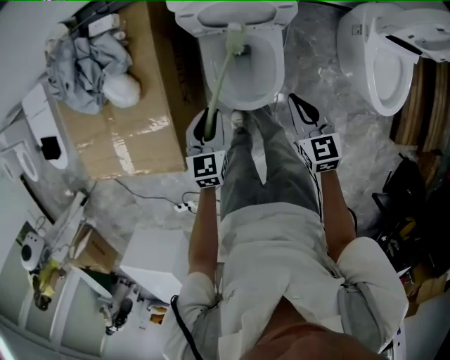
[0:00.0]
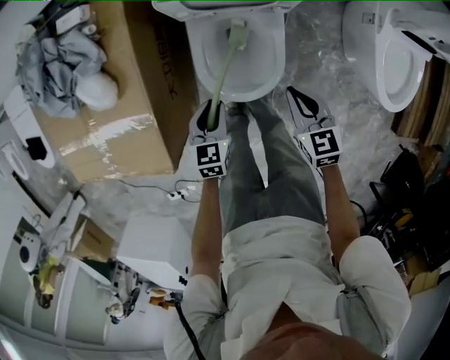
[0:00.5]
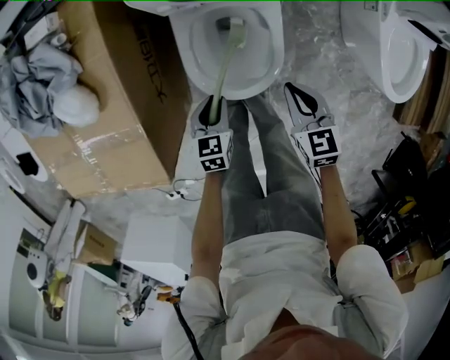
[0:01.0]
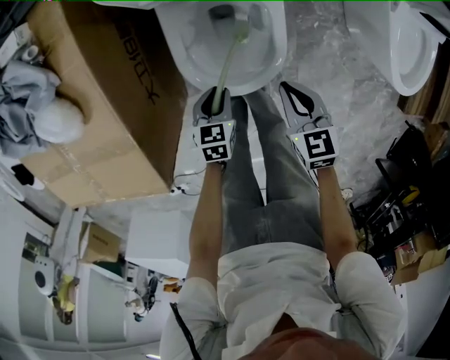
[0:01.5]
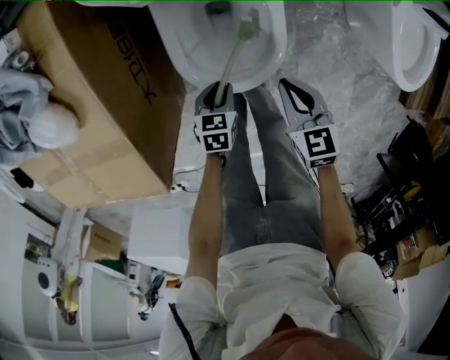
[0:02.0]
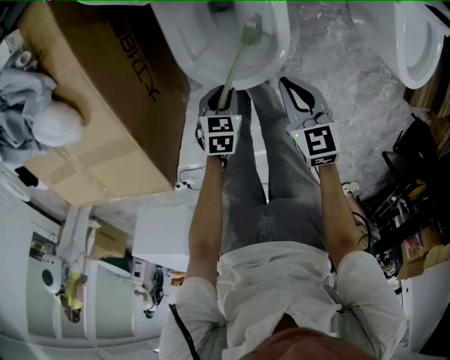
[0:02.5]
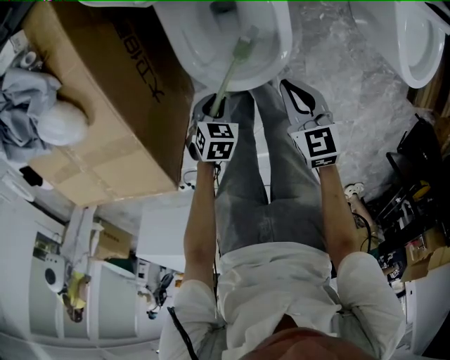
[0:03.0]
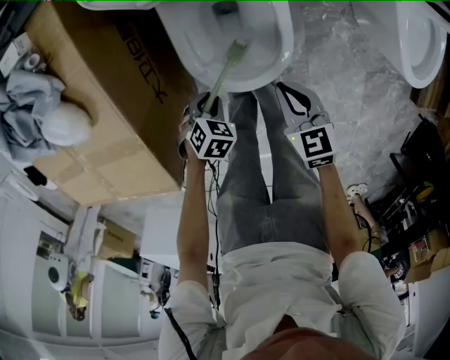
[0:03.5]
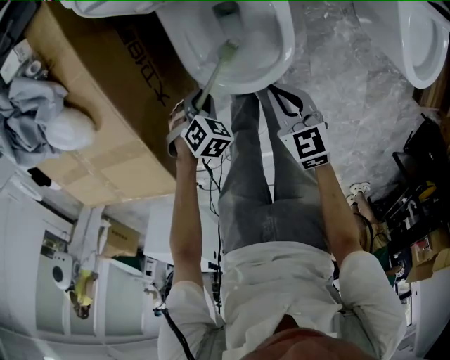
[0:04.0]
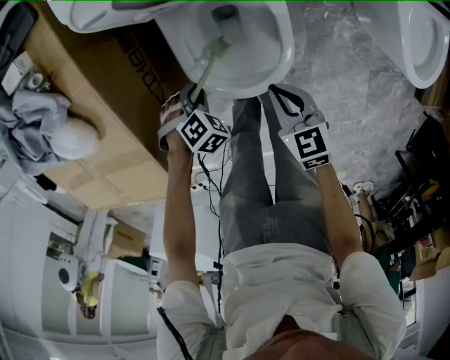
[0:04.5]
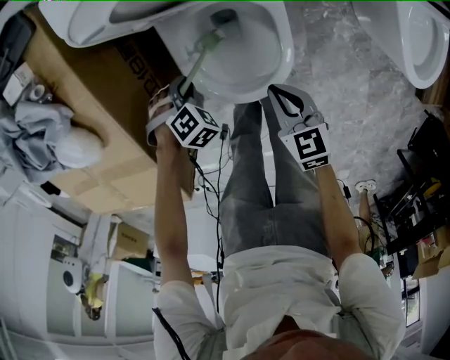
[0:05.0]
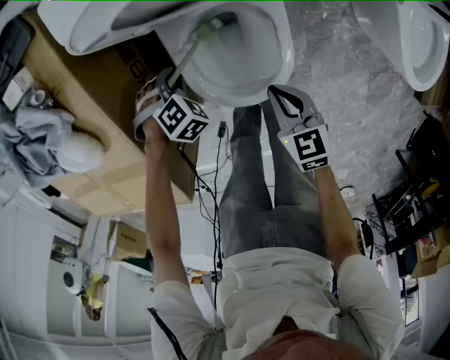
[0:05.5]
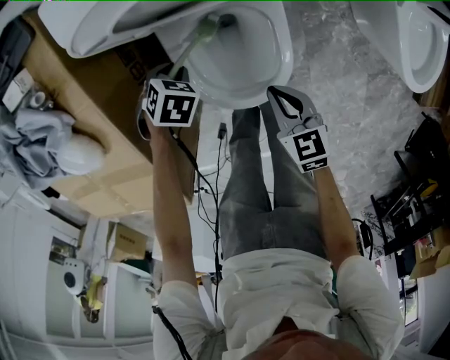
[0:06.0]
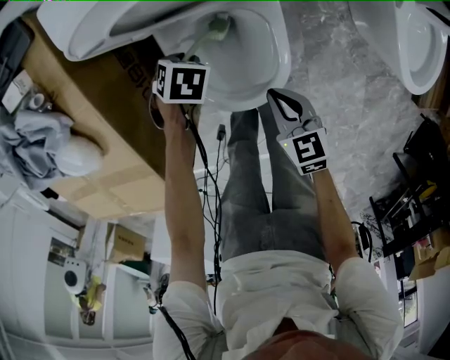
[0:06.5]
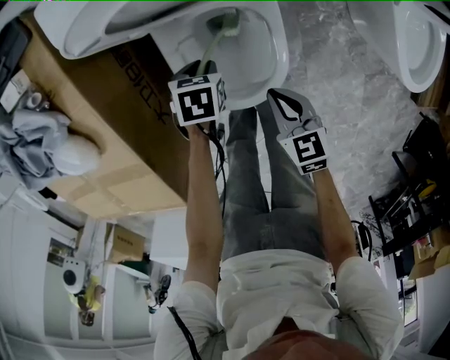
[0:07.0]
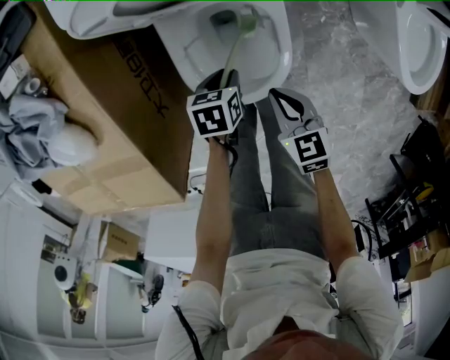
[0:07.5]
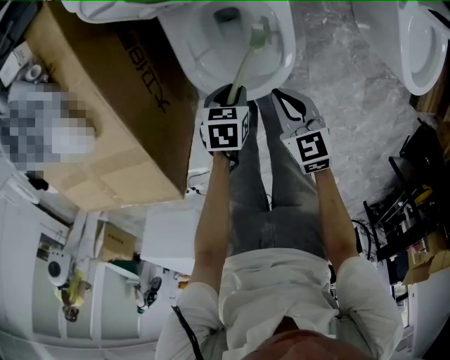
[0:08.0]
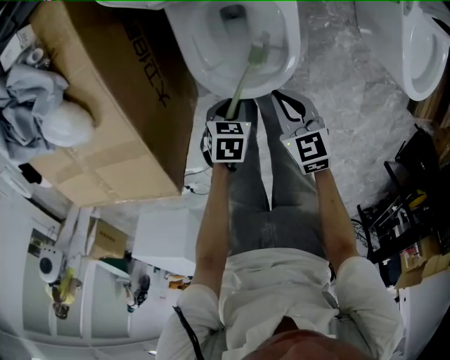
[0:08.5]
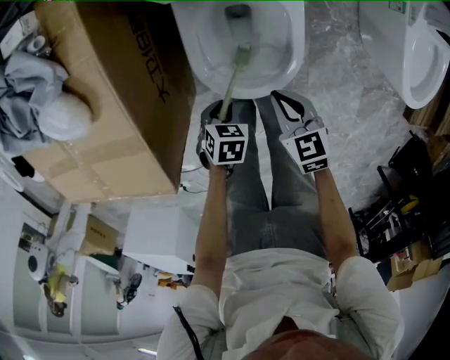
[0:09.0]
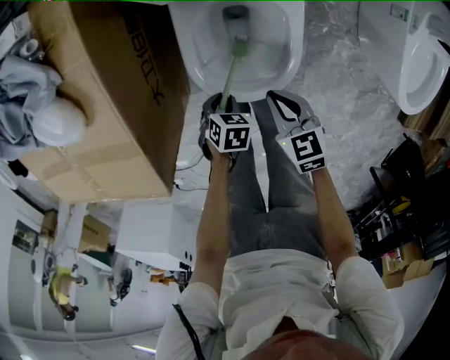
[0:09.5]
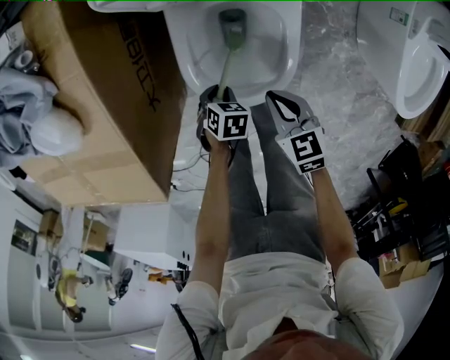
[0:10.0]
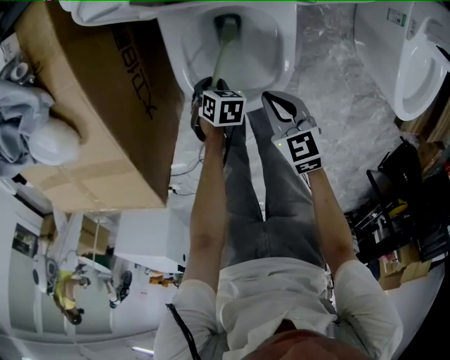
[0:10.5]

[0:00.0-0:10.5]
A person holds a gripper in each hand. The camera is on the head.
0:00.0 to 0:02.0: Both grippers travel together downward, roughly 25 cm. The left gripper changes its angle by roughly 30 degrees.
0:02.0 to 0:04.0: The left gripper shifts by about 5 cm, and twists some 40 degrees clockwise, seen from behind.
0:04.0 to 0:06.5: The left gripper moves some 20 cm, and turns by about 20 degrees; the right gripper shifts by roughly 5 cm.
0:06.5 to 0:08.5: The right gripper moves about 5 cm. The left gripper ends up some 20 cm from where it was, and rotates about 20 degrees.
0:08.5 to 0:10.5: The left gripper travels downward by about 10 cm; the right gripper changes place by approximately 5 cm.

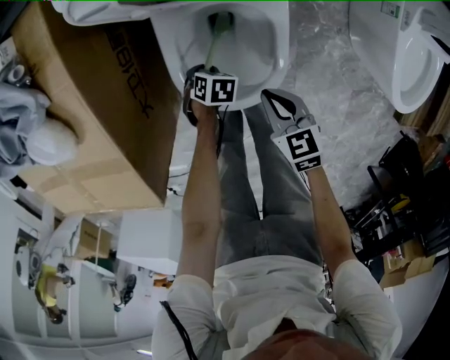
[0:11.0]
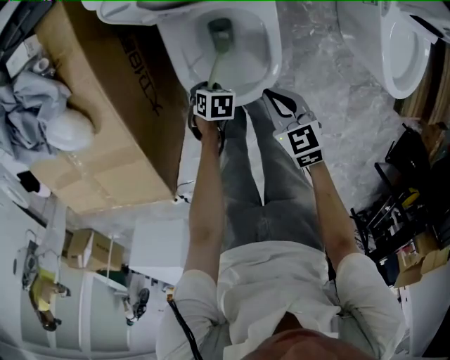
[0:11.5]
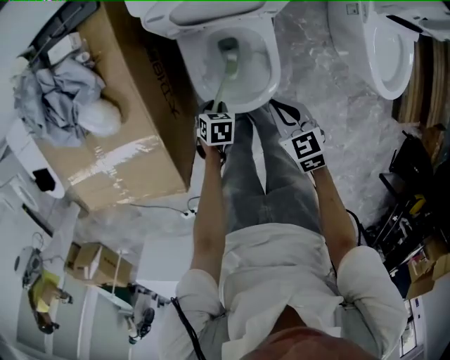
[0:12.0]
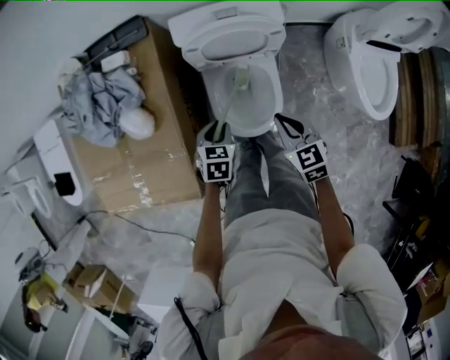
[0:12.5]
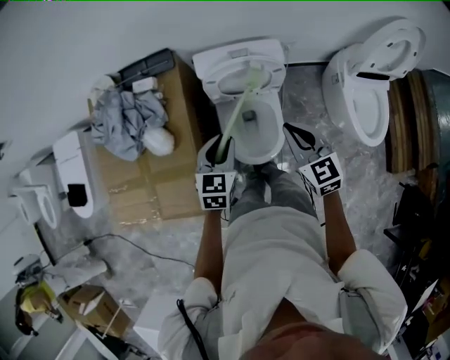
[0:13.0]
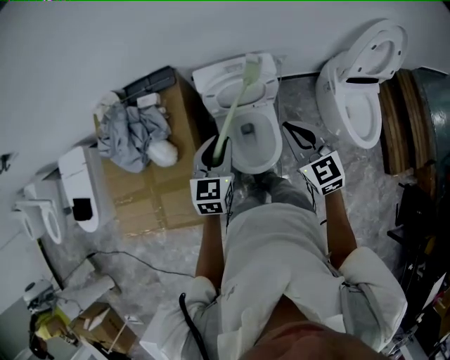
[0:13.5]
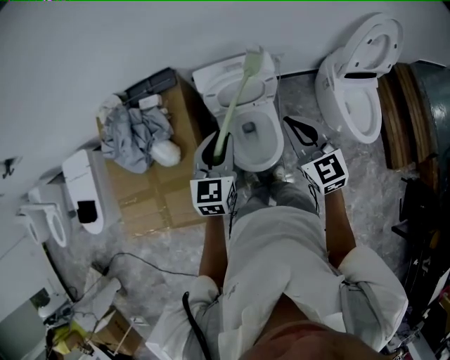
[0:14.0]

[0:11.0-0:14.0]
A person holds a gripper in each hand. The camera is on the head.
0:11.0 to 0:12.5: Both grippers move upward, some 30 cm. The left gripper turns by some 30 degrees.
0:12.5 to 0:14.0: The grippers both shift upward by approximately 25 cm. The right gripper rotates roughly 20 degrees. The left gripper angles its fingers upward, by approximately 40 degrees.

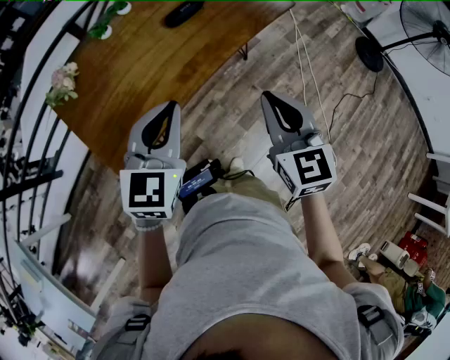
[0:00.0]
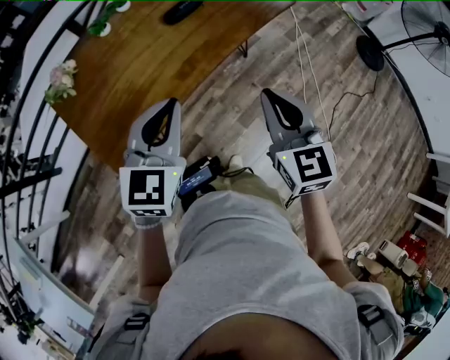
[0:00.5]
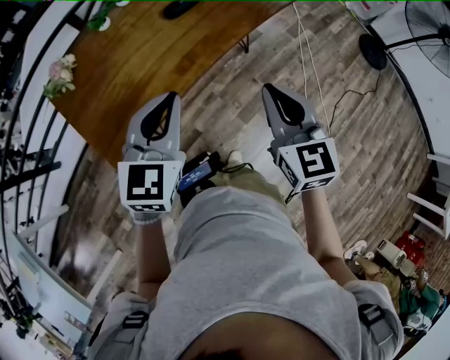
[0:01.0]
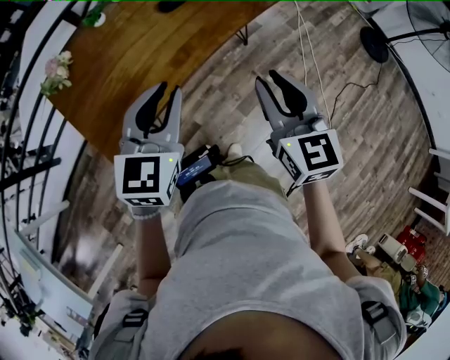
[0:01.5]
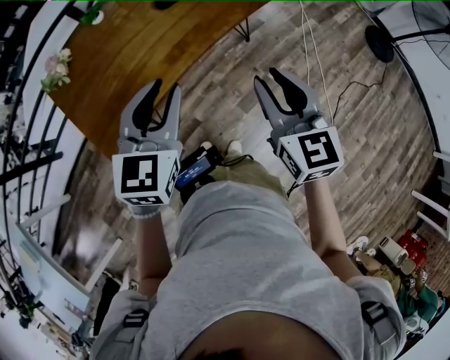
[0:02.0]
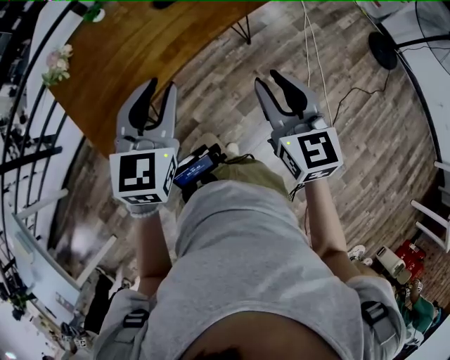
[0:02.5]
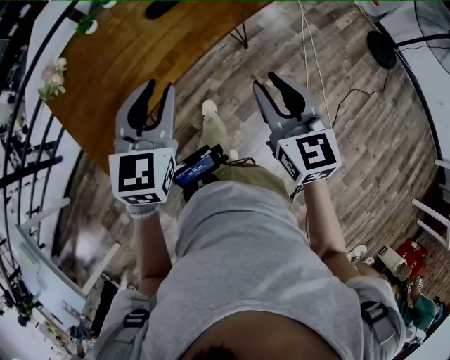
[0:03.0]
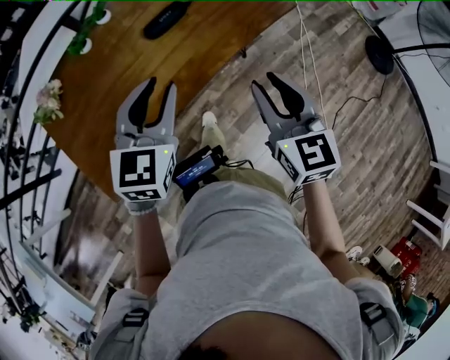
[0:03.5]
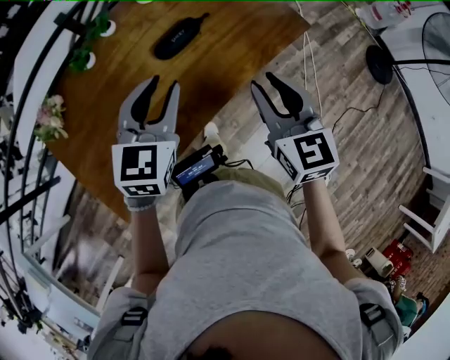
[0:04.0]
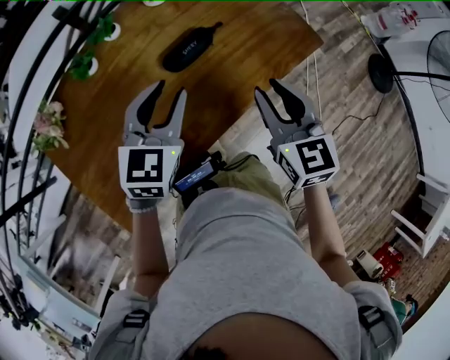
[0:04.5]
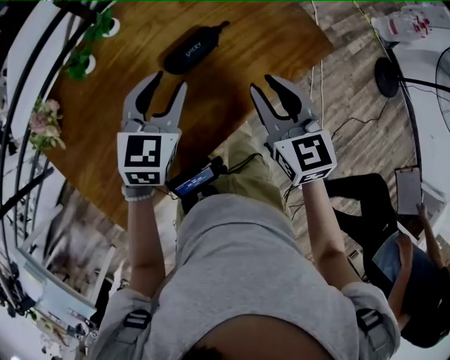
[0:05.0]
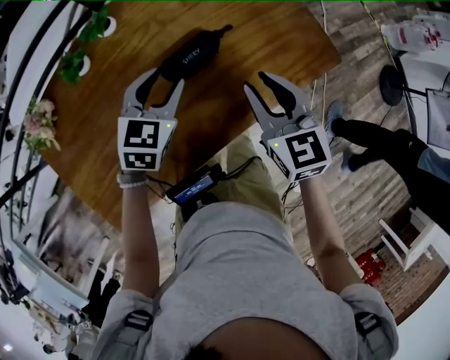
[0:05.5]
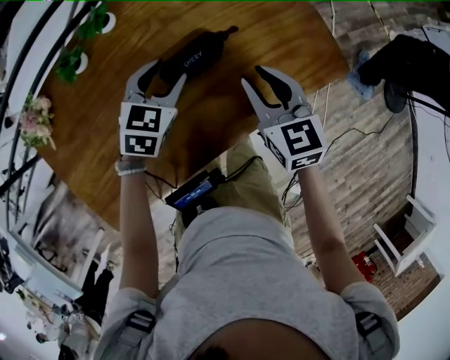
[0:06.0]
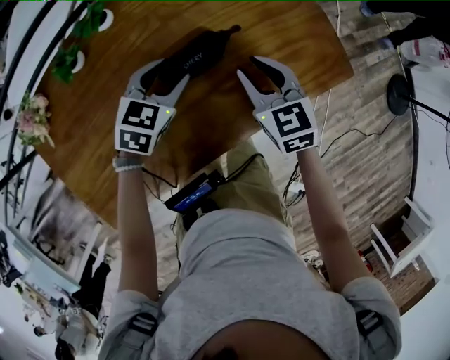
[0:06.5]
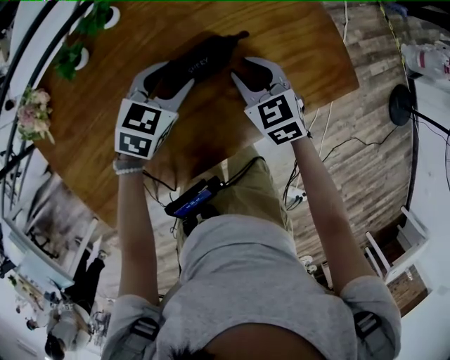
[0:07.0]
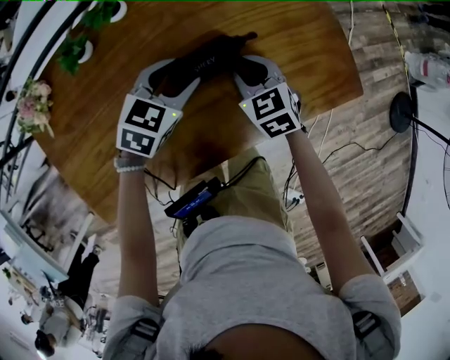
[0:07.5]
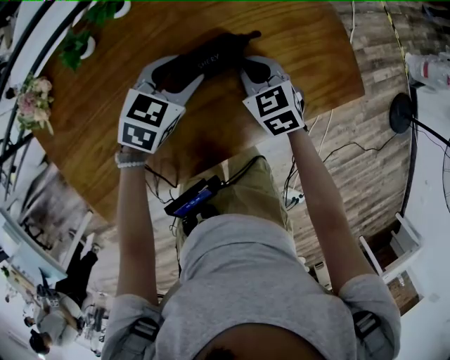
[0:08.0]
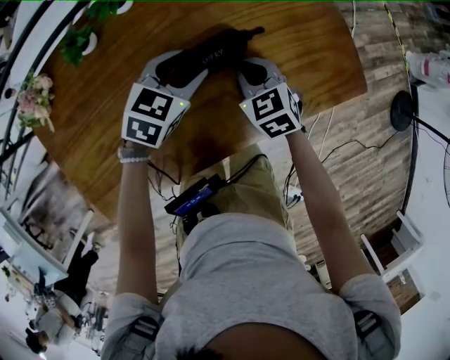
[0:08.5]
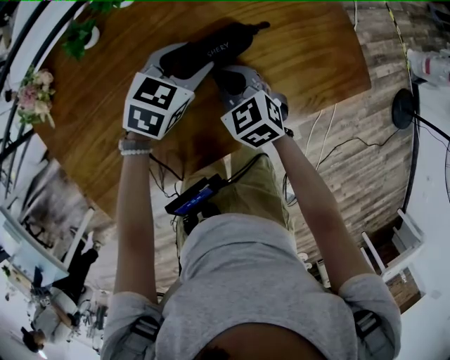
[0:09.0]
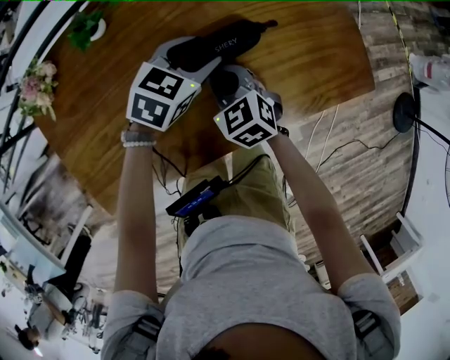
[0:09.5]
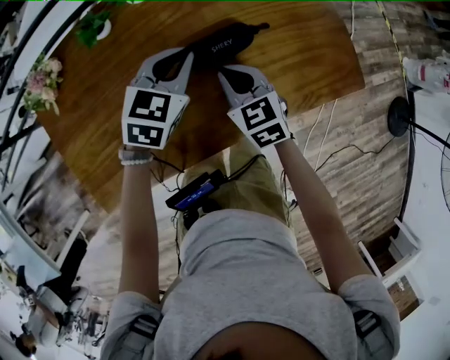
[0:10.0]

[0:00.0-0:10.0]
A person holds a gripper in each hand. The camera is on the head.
0:00.0 to 0:02.0: The right gripper opens up. Meanwhile the left gripper opens up.
0:02.0 to 0:04.0: Both grippers move forward, about 20 cm.
0:04.0 to 0:06.0: The left gripper heads downward and forward, covering approximately 20 cm, and opens. Meanwhile the right gripper shifts about 20 cm forward and downward.
0:06.0 to 0:08.0: The right gripper shifts about 10 cm downward and forward, swivels approximately 20 degrees, and closes.
0:08.0 to 0:10.0: The left gripper ends up roughly 5 cm from where it was, and closes its fingers. The right gripper is displaced to the left and backward by some 10 cm.

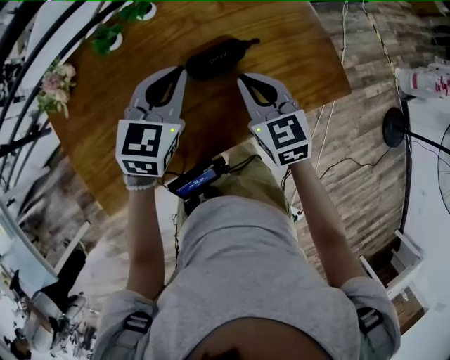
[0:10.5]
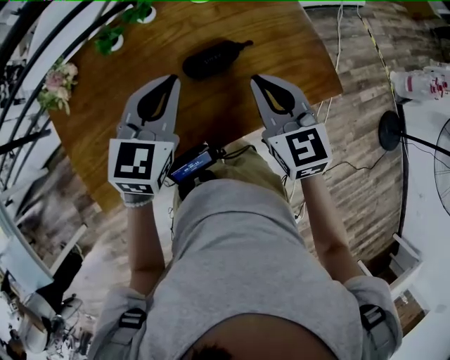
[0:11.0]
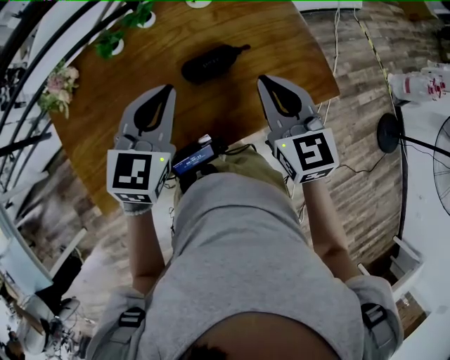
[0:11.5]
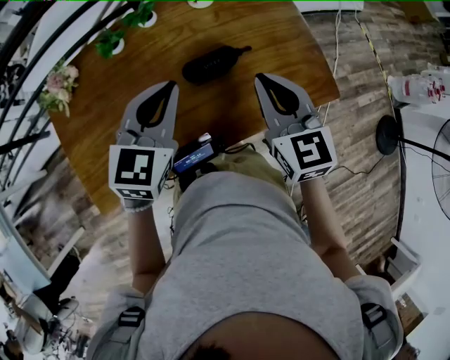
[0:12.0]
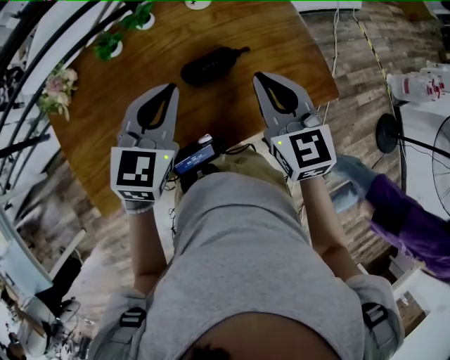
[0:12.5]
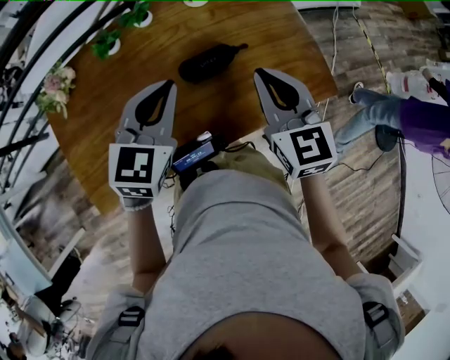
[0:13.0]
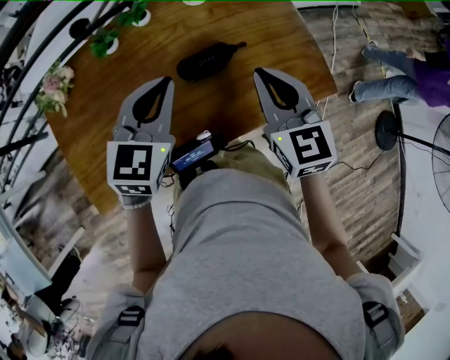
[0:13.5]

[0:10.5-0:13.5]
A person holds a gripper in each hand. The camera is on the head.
0:10.5 to 0:12.0: The right gripper travels upward by about 10 cm. The left gripper ends up approximately 5 cm from where it was.
0:12.0 to 0:13.5: Both grippers stay put.
